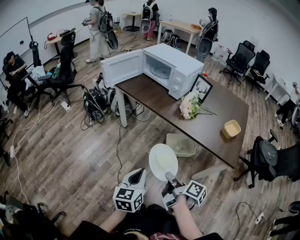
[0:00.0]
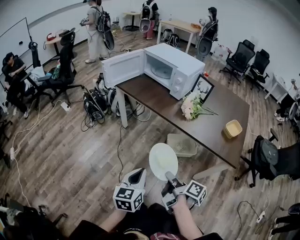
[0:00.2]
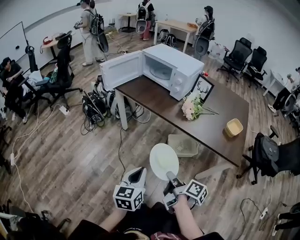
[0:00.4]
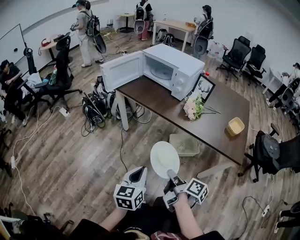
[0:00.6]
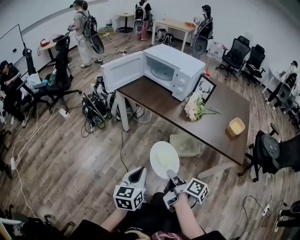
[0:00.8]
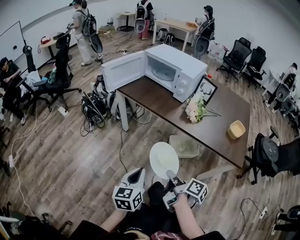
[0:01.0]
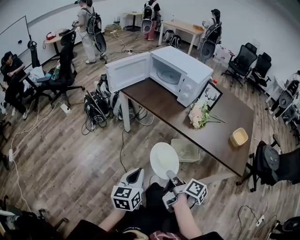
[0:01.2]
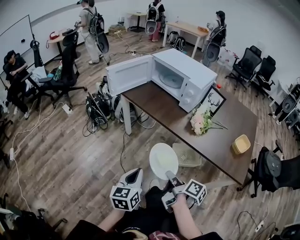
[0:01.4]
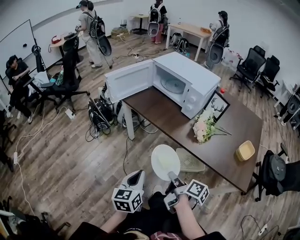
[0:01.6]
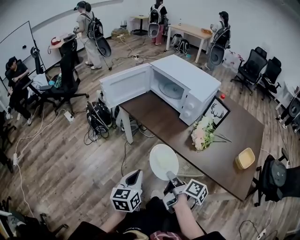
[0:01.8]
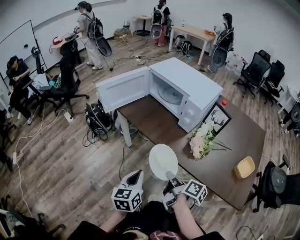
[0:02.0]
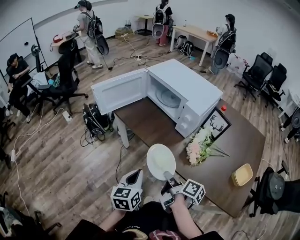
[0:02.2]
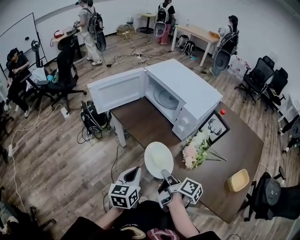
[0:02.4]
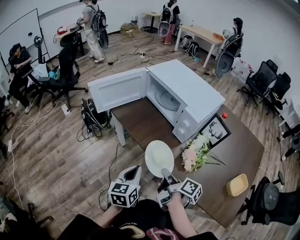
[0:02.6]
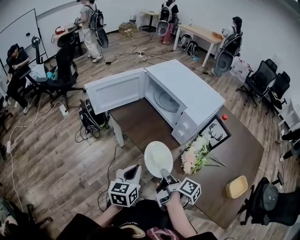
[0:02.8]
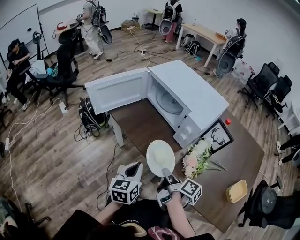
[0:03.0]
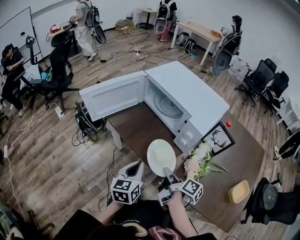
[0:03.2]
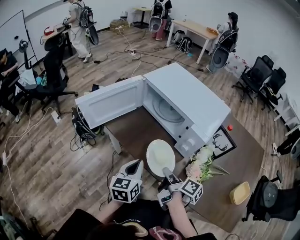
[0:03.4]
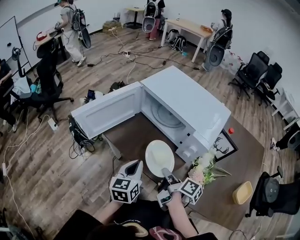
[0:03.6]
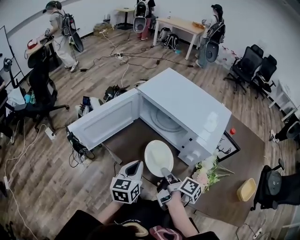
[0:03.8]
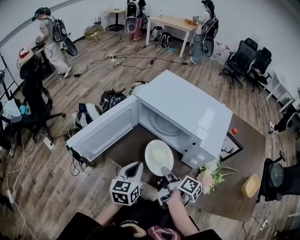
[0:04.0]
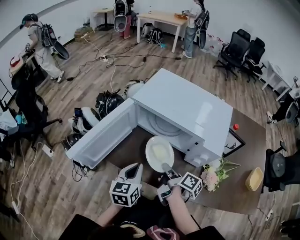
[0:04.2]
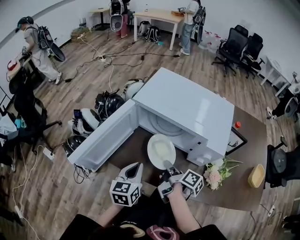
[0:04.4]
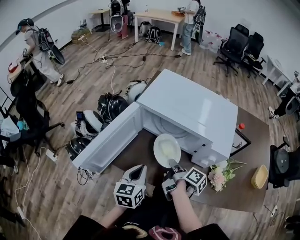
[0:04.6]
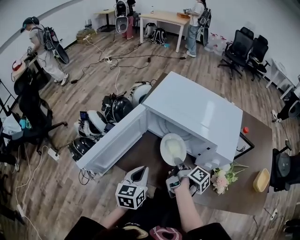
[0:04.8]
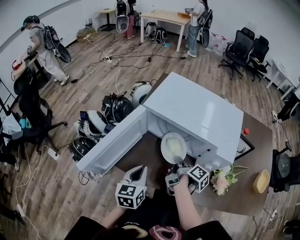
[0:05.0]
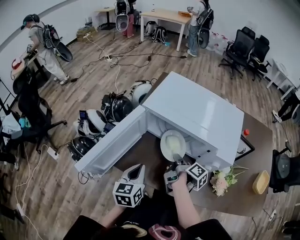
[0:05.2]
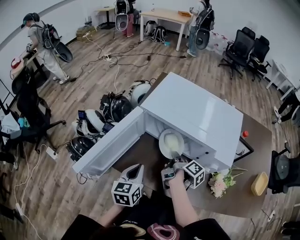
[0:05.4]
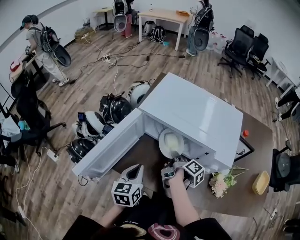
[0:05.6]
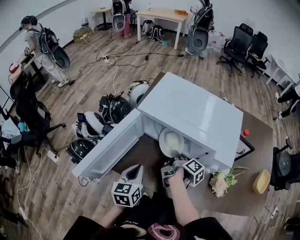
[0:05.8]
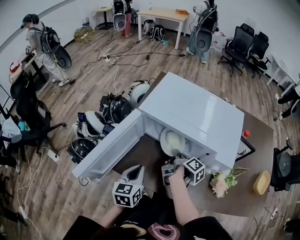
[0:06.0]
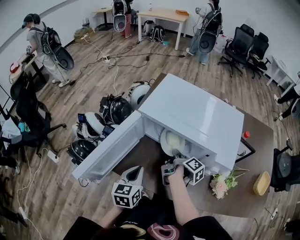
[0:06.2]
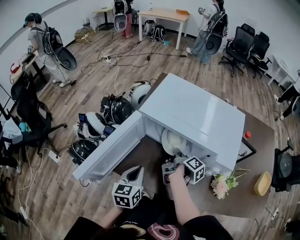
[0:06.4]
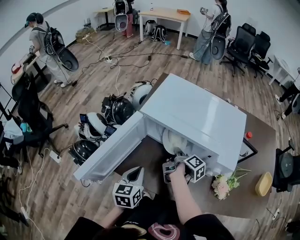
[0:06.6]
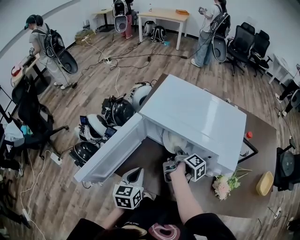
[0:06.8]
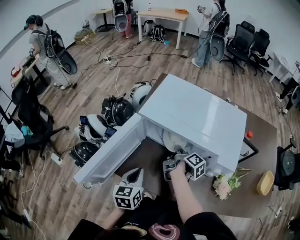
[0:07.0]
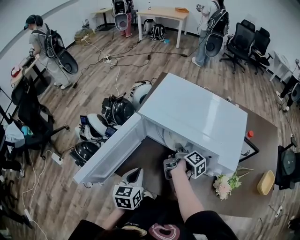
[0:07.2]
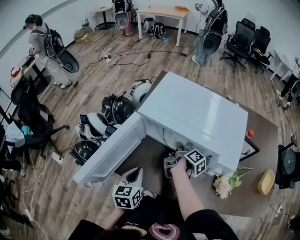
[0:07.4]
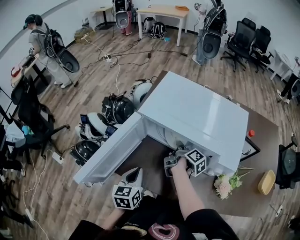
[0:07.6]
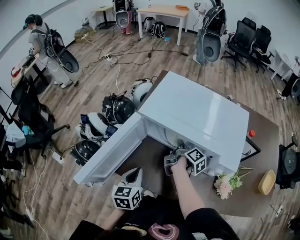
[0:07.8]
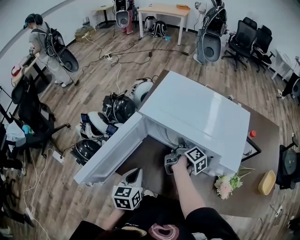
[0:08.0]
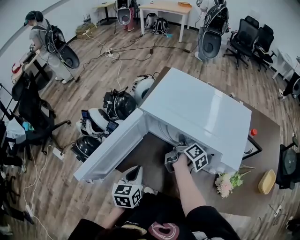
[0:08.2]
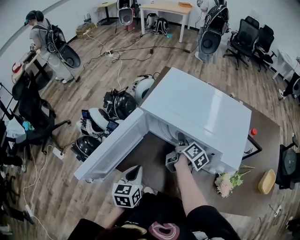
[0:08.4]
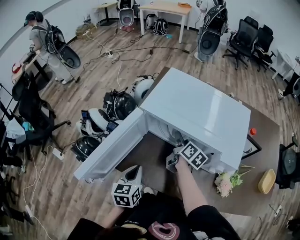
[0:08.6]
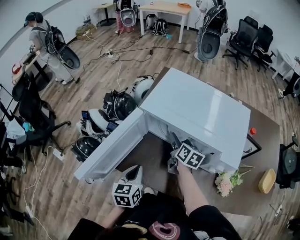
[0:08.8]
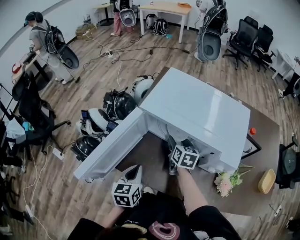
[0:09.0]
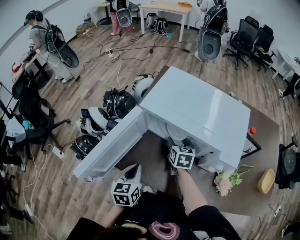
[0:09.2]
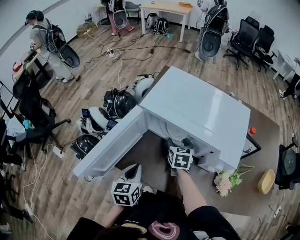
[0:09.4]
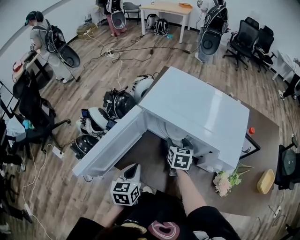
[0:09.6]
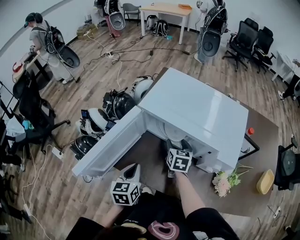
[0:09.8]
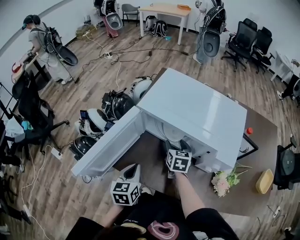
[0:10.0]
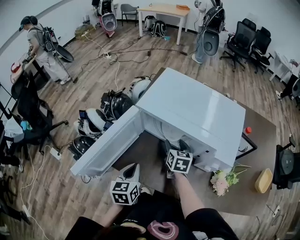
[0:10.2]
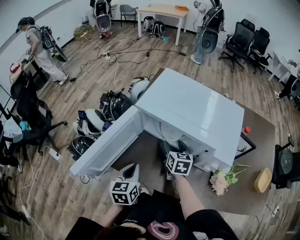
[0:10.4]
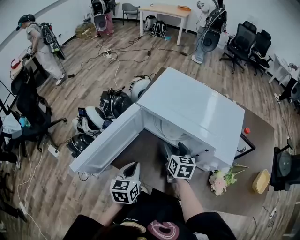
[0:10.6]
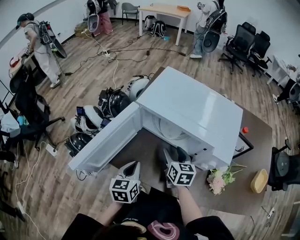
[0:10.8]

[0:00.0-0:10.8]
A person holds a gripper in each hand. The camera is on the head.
0:00.0 to 0:01.6: The right gripper shifts about 20 cm forward; the left gripper goes about 20 cm forward and to the left.
0:01.6 to 0:03.0: The right gripper moves forward, approximately 25 cm; the left gripper travels forward and to the right by roughly 25 cm.
0:03.0 to 0:04.6: Both grippers move forward and to the left, about 25 cm. The right gripper changes its angle by about 30 degrees. The left gripper rotates approximately 20 degrees.
0:04.6 to 0:06.2: The right gripper travels forward by roughly 10 cm.
0:06.2 to 0:07.8: The right gripper travels forward by approximately 5 cm.
0:07.8 to 0:09.2: The right gripper rotates around the line of its fingers by about 70 degrees, counterclockwise from behind, and opens its fingers.
0:09.2 to 0:10.8: The right gripper goes roughly 10 cm backward.

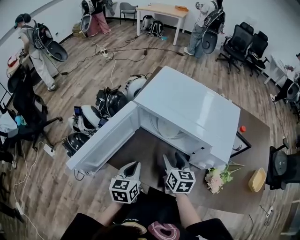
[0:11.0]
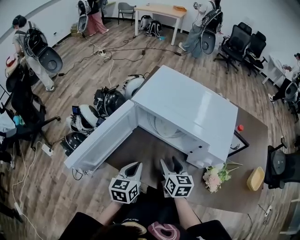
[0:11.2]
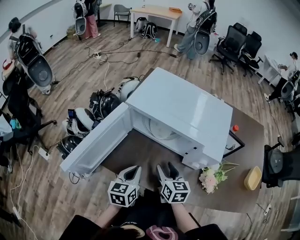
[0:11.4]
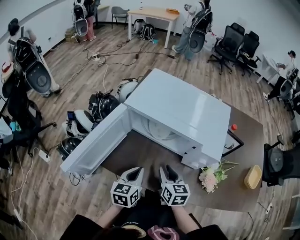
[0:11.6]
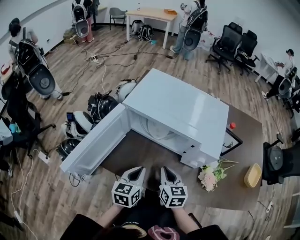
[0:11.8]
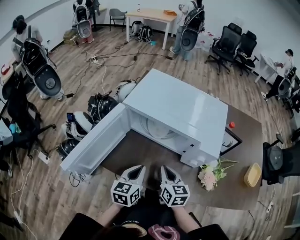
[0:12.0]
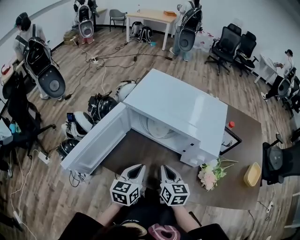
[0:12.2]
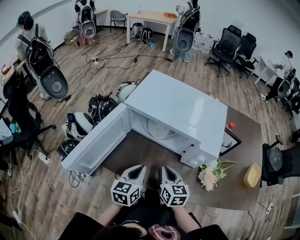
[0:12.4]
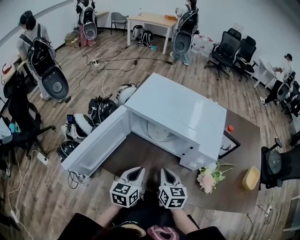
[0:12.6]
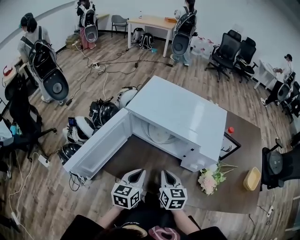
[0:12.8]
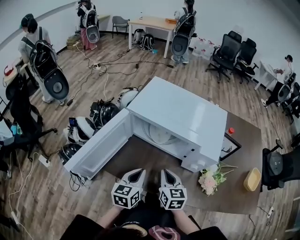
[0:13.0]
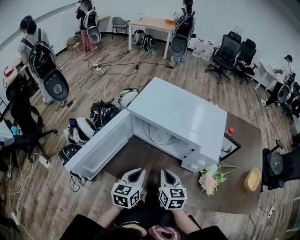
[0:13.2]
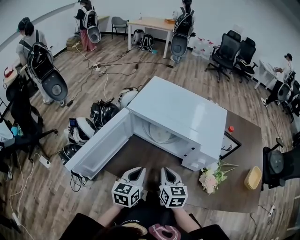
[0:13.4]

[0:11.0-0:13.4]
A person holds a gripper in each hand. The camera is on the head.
0:11.0 to 0:12.2: The left gripper heads to the right, covering some 5 cm, while the right gripper heads backward, covering roughly 5 cm, and closes up.
0:12.2 to 0:13.4: The grippers move only a little.

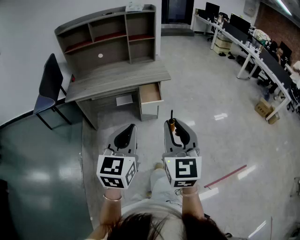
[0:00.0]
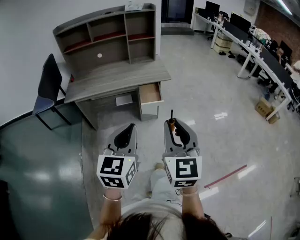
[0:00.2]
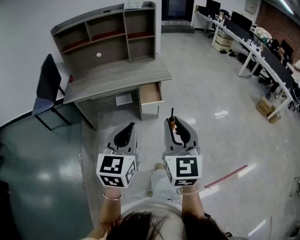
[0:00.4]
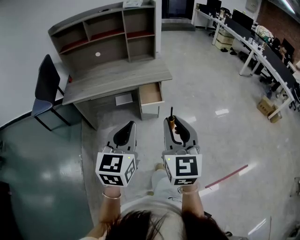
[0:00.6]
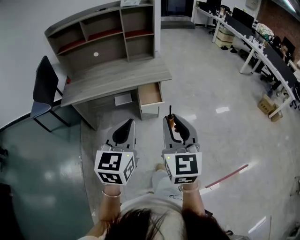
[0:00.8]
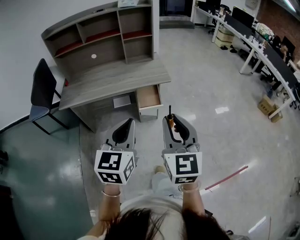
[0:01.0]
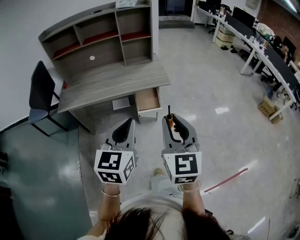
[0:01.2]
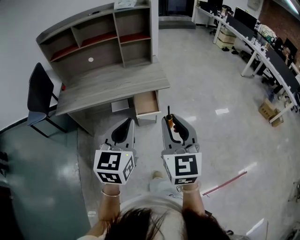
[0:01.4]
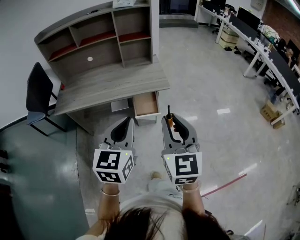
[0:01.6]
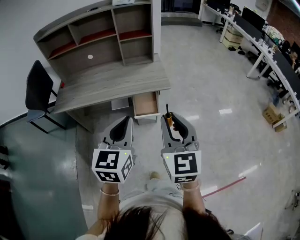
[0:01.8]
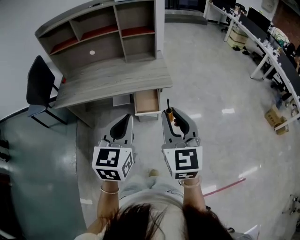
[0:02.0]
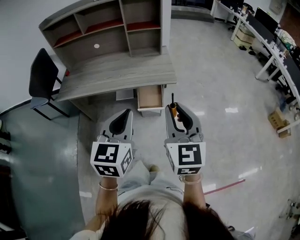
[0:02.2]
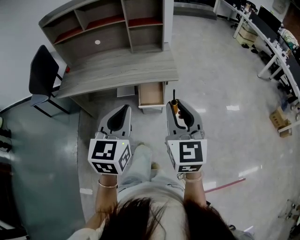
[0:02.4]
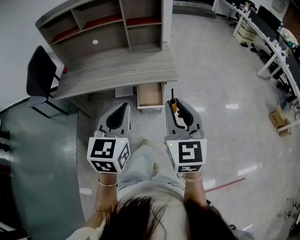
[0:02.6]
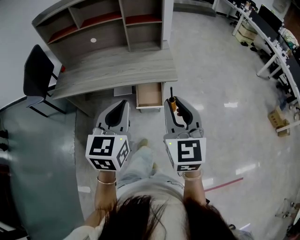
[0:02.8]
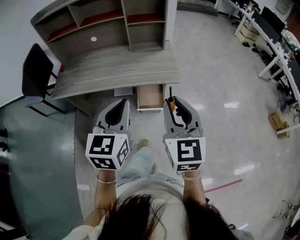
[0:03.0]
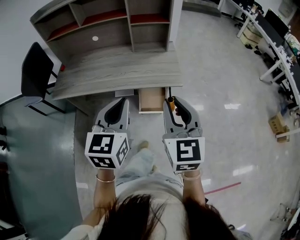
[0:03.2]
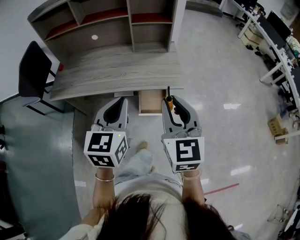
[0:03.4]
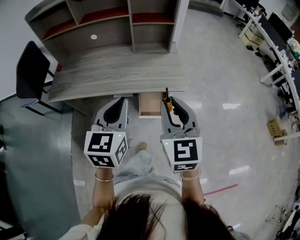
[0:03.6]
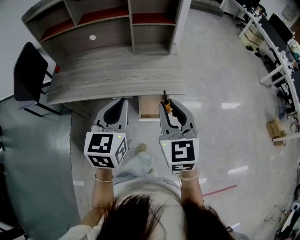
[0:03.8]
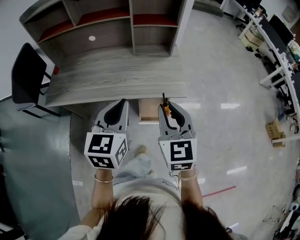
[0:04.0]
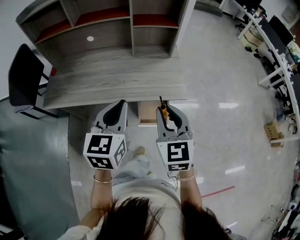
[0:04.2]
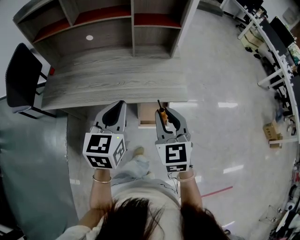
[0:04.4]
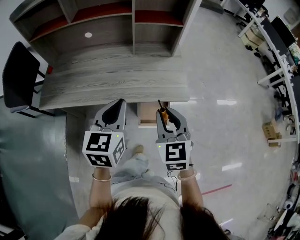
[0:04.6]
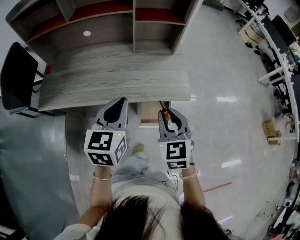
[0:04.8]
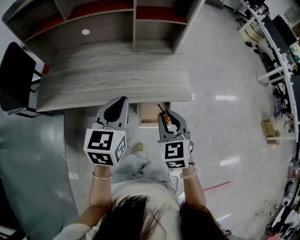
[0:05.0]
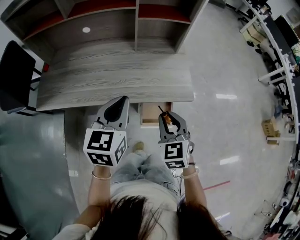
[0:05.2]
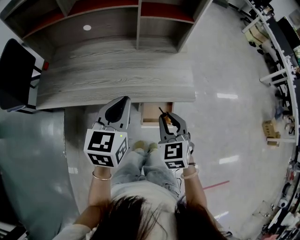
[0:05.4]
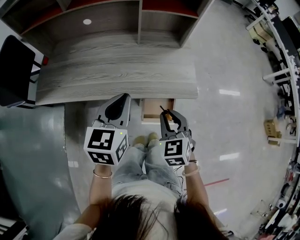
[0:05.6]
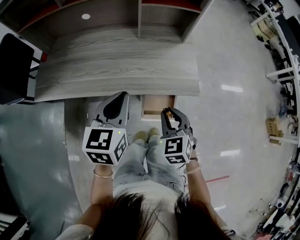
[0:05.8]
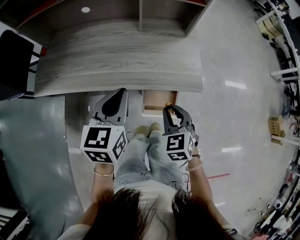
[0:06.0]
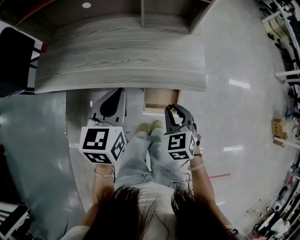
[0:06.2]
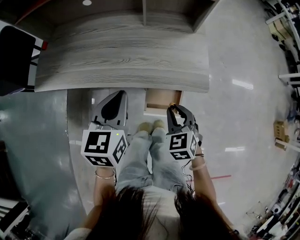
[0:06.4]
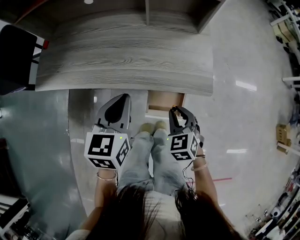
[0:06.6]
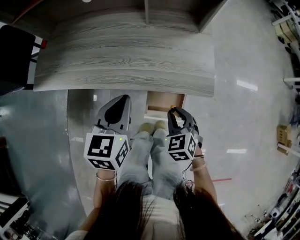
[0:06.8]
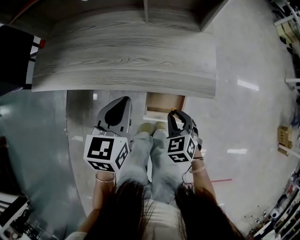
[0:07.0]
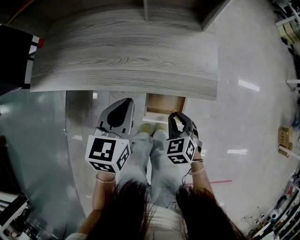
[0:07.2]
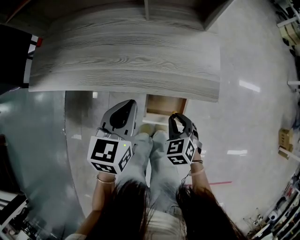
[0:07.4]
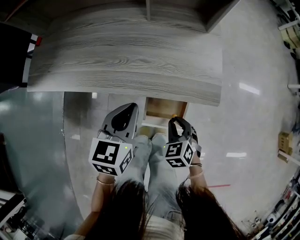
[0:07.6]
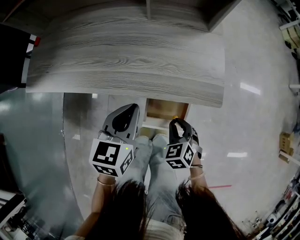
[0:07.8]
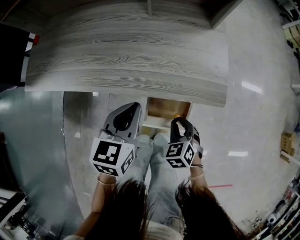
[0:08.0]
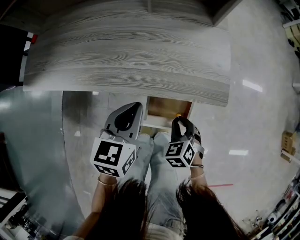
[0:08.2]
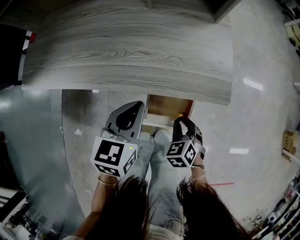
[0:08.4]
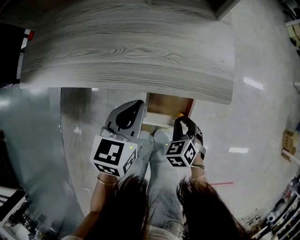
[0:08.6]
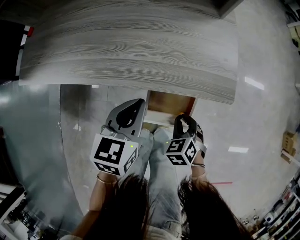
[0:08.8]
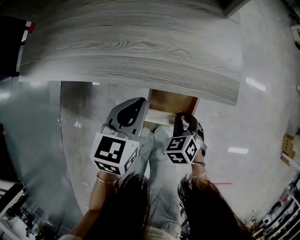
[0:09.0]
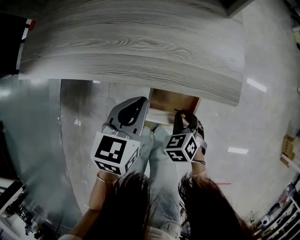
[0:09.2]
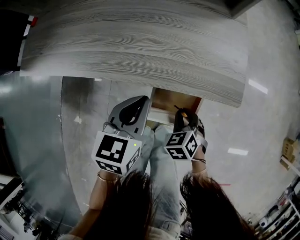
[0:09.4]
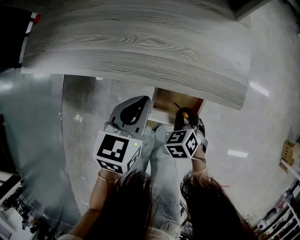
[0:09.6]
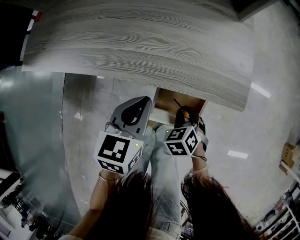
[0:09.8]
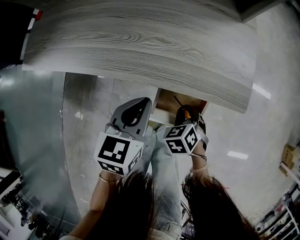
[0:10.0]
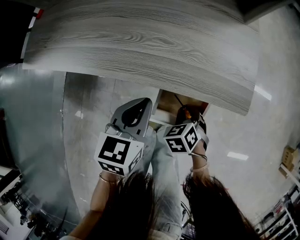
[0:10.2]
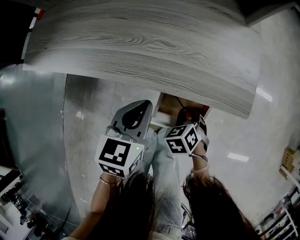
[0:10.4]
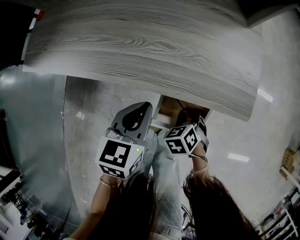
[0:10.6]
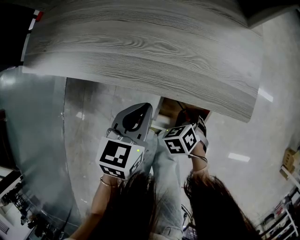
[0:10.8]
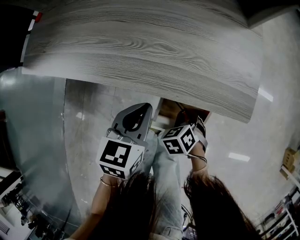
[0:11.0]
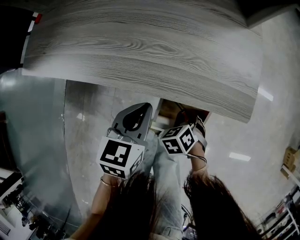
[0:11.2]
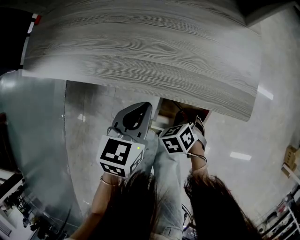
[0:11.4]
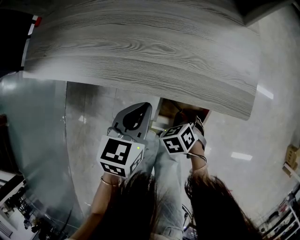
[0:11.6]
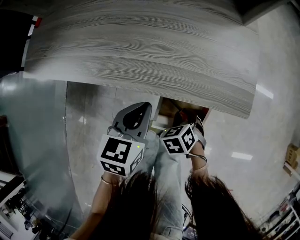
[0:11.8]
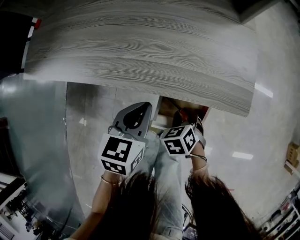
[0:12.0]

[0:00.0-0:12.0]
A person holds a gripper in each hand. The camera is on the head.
0:00.0 to 0:01.6: The grippers both shift forward by some 25 cm.
0:01.6 to 0:03.0: The grippers both shift forward by some 15 cm.
0:03.0 to 0:04.4: The left gripper travels forward by roughly 20 cm. The right gripper goes some 20 cm forward, downward and to the left.
0:04.4 to 0:06.0: The left gripper is displaced downward and forward by approximately 10 cm, while the right gripper travels downward by approximately 15 cm, and turns by some 20 degrees.
0:06.0 to 0:07.6: Both grippers travel together downward, about 15 cm.
0:07.6 to 0:09.0: The two grippers go approximately 10 cm downward.
0:09.0 to 0:10.4: The right gripper shifts by about 5 cm.
0:10.4 to 0:12.0: The grippers stay close to where they were, moving slightly.
